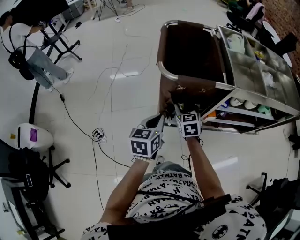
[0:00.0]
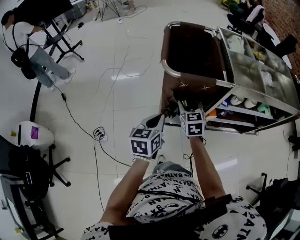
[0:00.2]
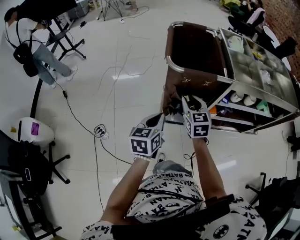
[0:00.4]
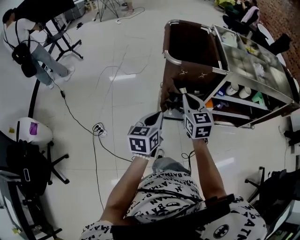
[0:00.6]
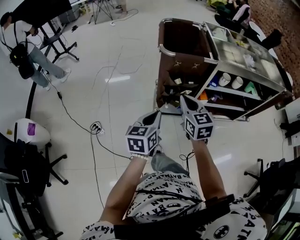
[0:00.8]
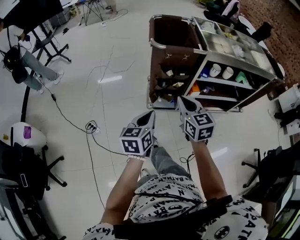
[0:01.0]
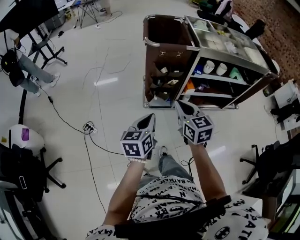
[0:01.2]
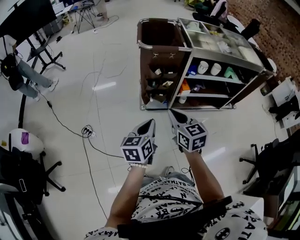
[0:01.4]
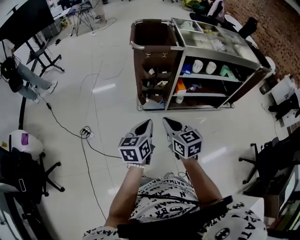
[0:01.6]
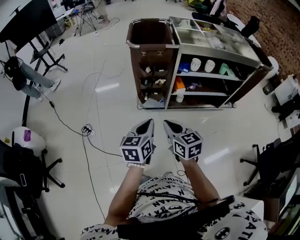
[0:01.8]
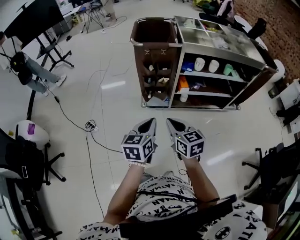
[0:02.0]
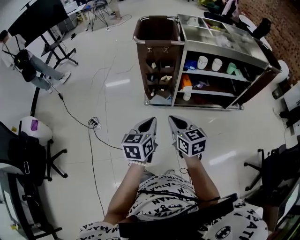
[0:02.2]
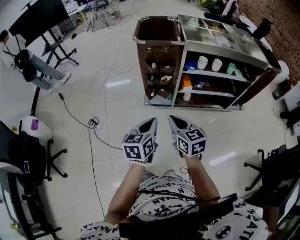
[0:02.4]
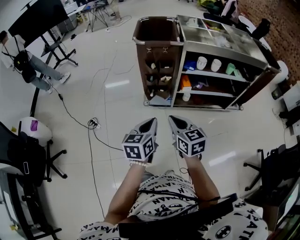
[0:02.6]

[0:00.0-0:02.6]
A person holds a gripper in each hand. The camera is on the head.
0:00.0 to 0:01.2: The left gripper goes some 25 cm backward. Meanwhile the right gripper travels backward and upward by approximately 35 cm, and closes.
0:01.2 to 0:02.6: The left gripper travels to the right and backward by some 15 cm. Meanwhile the right gripper is displaced backward and to the right by approximately 15 cm.

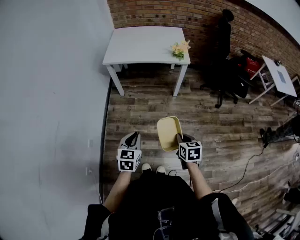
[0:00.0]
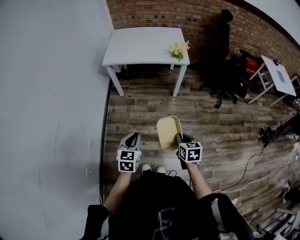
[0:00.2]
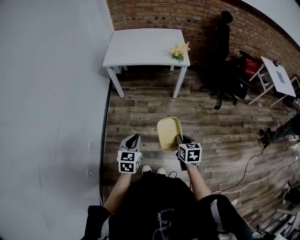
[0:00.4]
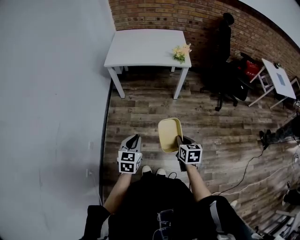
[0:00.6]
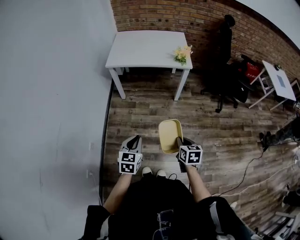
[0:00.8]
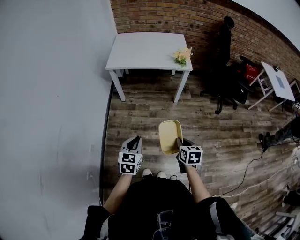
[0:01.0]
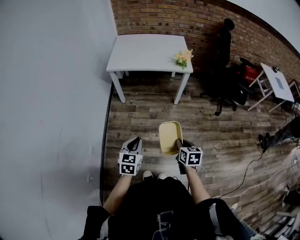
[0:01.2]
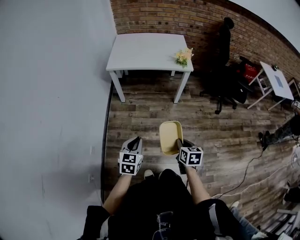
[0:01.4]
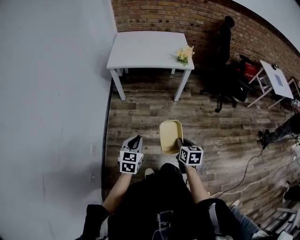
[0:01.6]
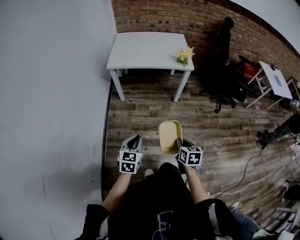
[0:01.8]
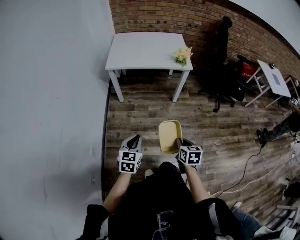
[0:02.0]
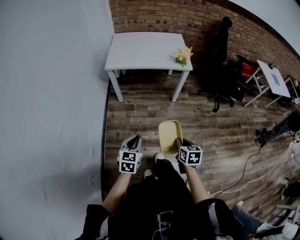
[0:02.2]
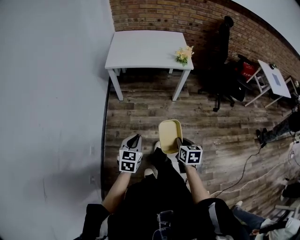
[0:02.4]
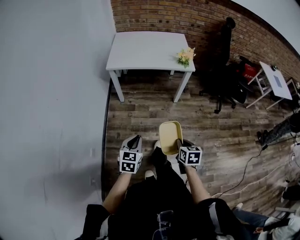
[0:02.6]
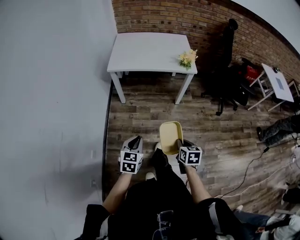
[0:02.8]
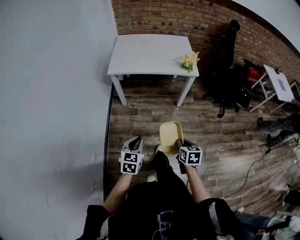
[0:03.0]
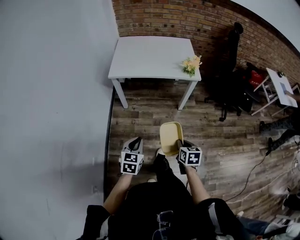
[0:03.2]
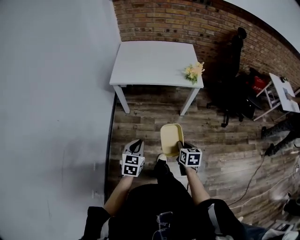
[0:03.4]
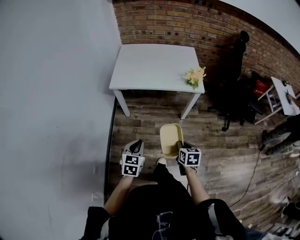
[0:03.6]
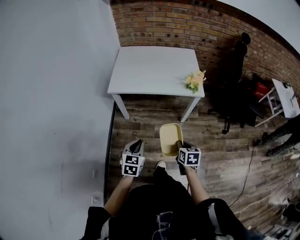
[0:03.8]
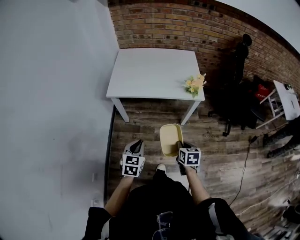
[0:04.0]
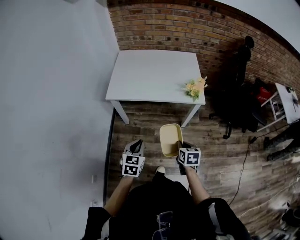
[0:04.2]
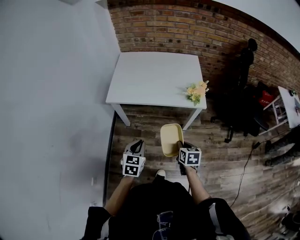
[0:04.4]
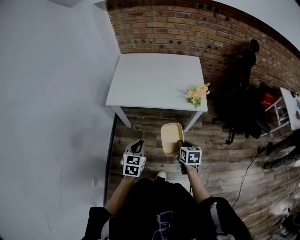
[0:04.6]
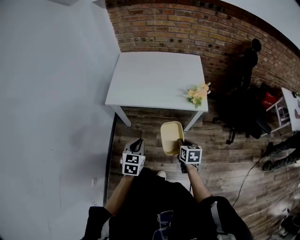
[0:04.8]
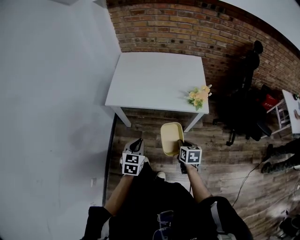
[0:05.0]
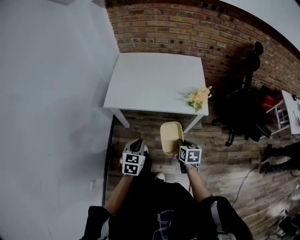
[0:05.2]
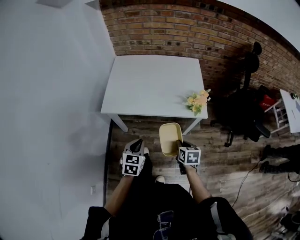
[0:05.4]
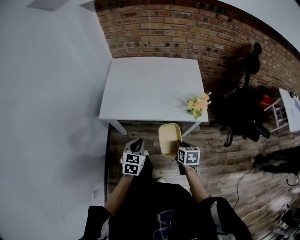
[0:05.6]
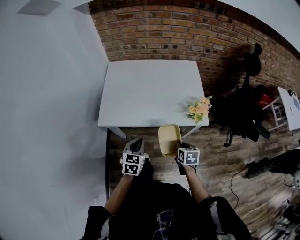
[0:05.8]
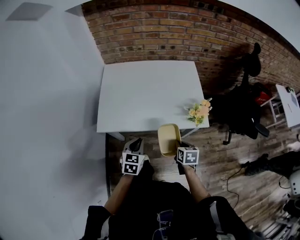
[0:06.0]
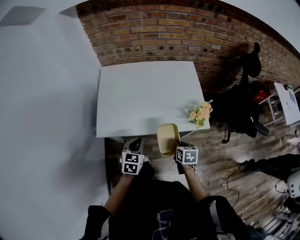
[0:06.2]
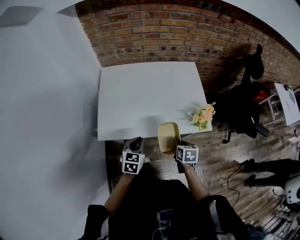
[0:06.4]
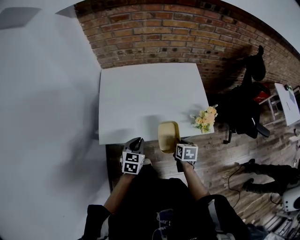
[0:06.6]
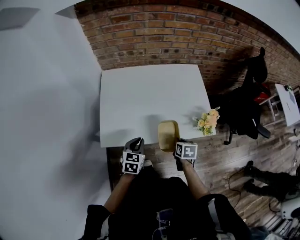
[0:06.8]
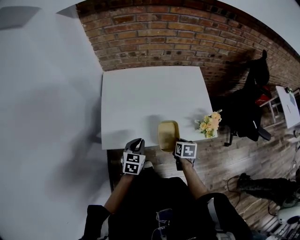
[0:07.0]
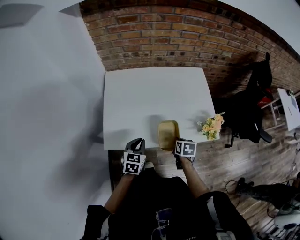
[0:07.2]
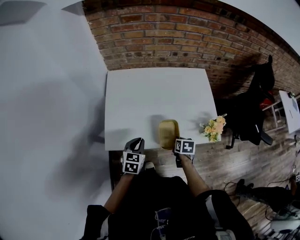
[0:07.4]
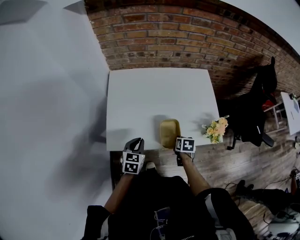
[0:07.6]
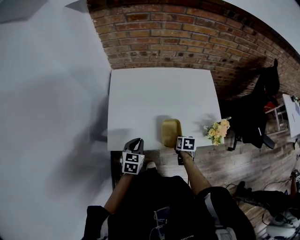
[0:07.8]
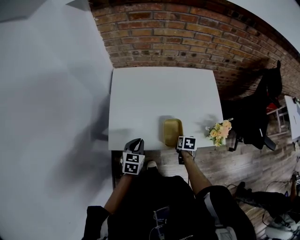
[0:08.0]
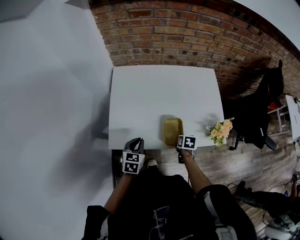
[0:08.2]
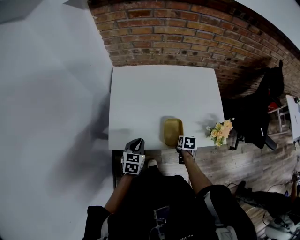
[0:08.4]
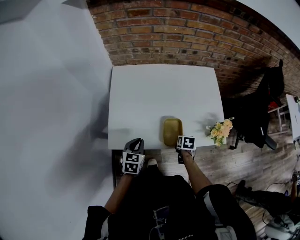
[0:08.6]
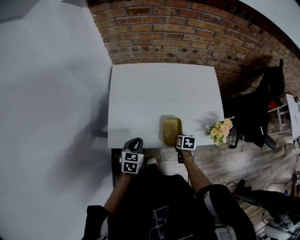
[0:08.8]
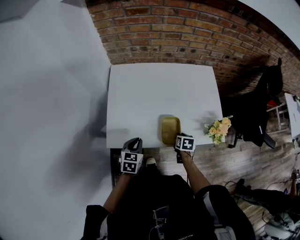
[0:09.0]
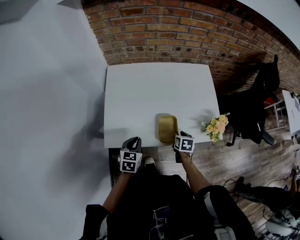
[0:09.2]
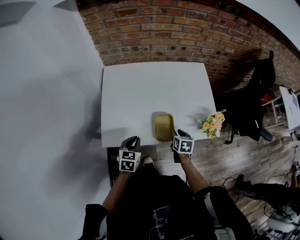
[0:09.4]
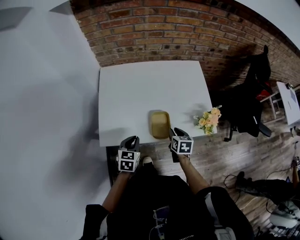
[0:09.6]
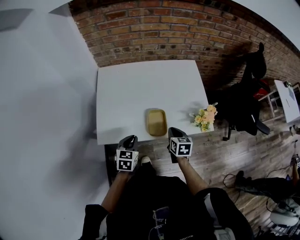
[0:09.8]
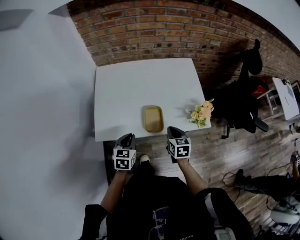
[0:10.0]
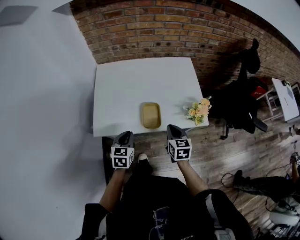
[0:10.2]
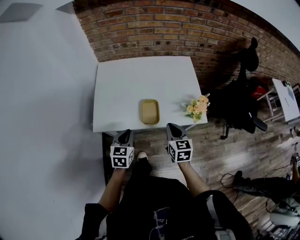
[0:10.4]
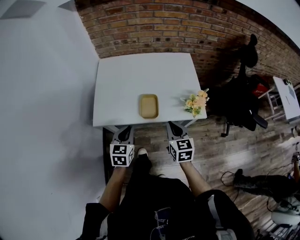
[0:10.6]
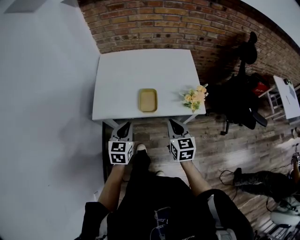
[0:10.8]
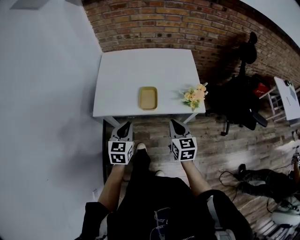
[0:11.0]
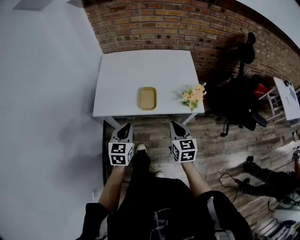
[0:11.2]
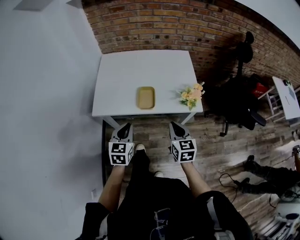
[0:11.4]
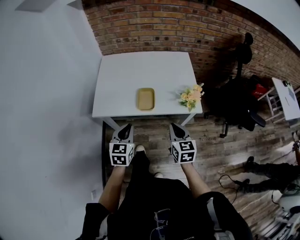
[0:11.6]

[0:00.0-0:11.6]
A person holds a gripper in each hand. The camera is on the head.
0:00.0 to 0:01.4: The grippers stay close to where they were, moving slightly.
0:01.4 to 0:02.8: The left gripper goes some 5 cm forward; the right gripper shifts by approximately 5 cm.
0:02.8 to 0:04.4: Both grippers move forward, roughly 30 cm.
0:04.4 to 0:05.8: The grippers both shift forward by approximately 20 cm.
0:05.8 to 0:07.2: The grippers both shift forward and to the left by about 20 cm.
0:07.2 to 0:08.8: The left gripper changes place by some 5 cm; the right gripper heads downward, covering approximately 5 cm.
0:08.8 to 0:10.2: The right gripper shifts roughly 20 cm upward and backward, tilts its fingers about 30 degrees upward, and opens, then closes once more. Meanwhile the left gripper travels to the right, backward and upward by roughly 10 cm.
0:10.2 to 0:11.6: The left gripper is displaced backward, upward and to the right by some 15 cm, while the right gripper shifts roughly 15 cm backward.

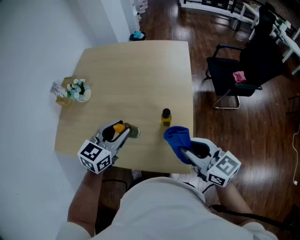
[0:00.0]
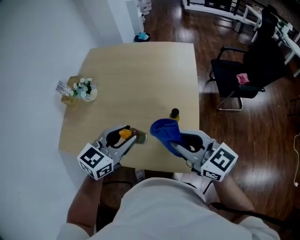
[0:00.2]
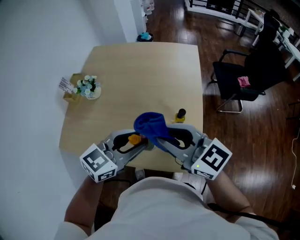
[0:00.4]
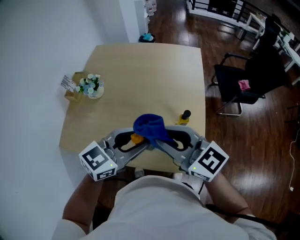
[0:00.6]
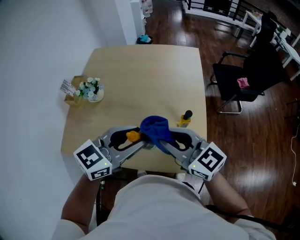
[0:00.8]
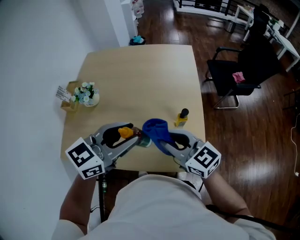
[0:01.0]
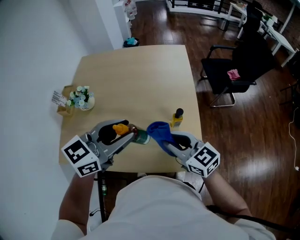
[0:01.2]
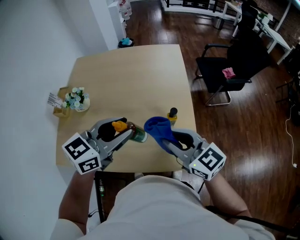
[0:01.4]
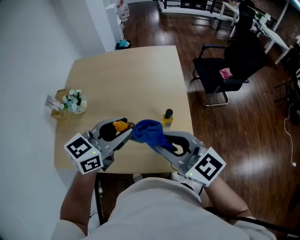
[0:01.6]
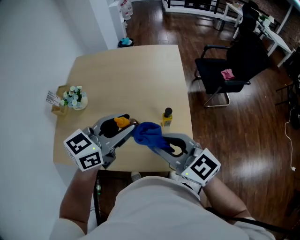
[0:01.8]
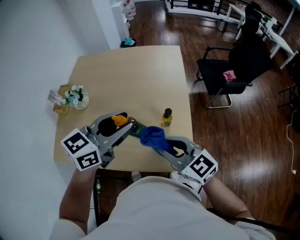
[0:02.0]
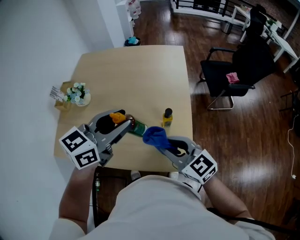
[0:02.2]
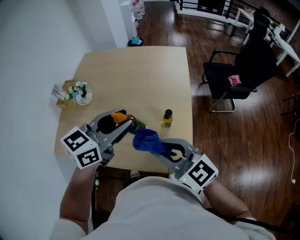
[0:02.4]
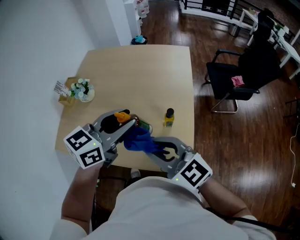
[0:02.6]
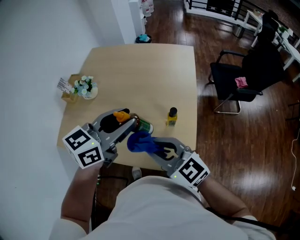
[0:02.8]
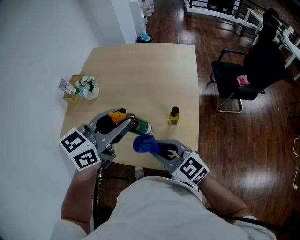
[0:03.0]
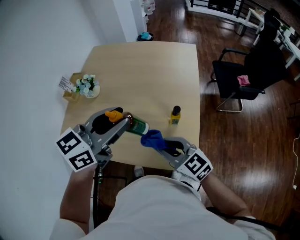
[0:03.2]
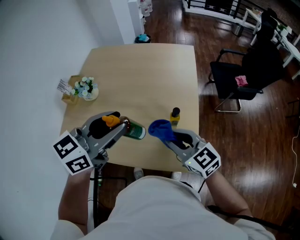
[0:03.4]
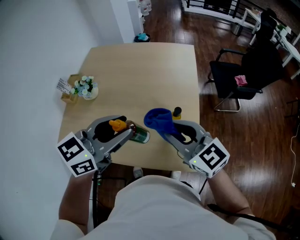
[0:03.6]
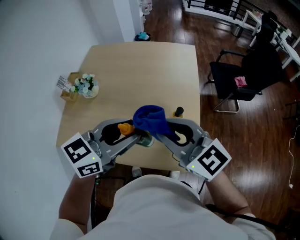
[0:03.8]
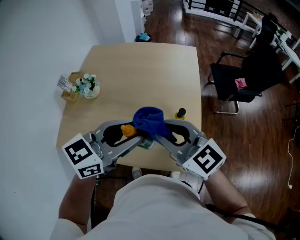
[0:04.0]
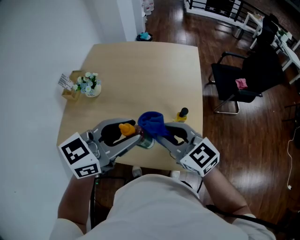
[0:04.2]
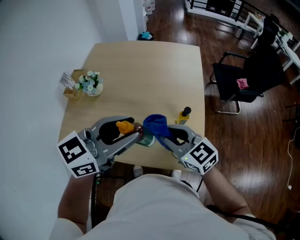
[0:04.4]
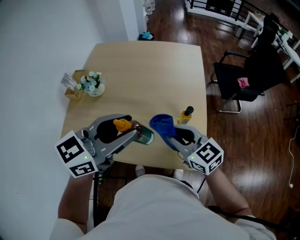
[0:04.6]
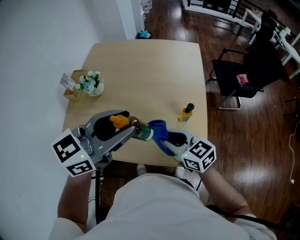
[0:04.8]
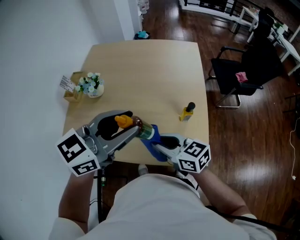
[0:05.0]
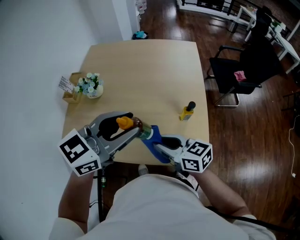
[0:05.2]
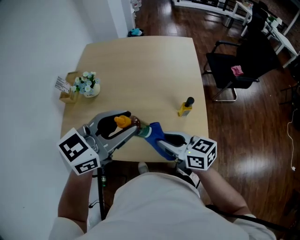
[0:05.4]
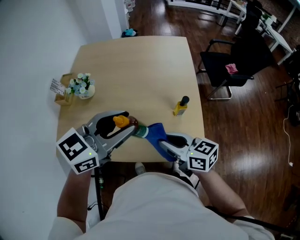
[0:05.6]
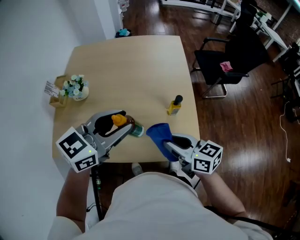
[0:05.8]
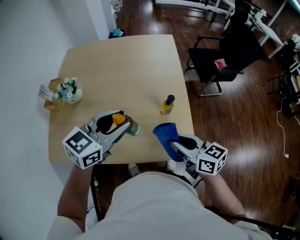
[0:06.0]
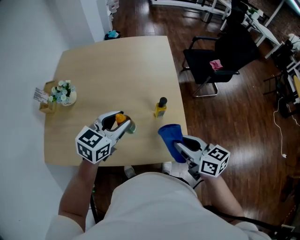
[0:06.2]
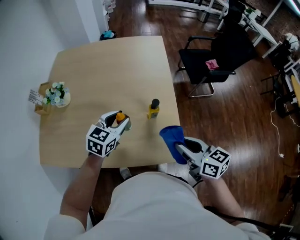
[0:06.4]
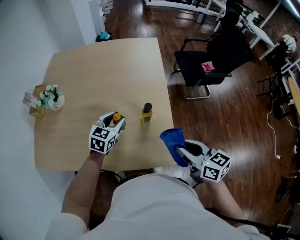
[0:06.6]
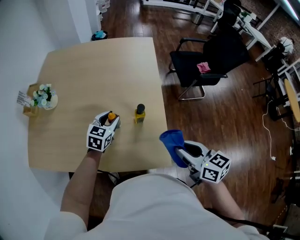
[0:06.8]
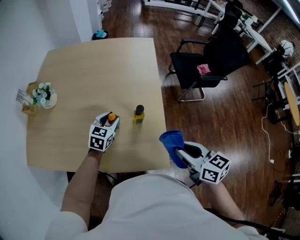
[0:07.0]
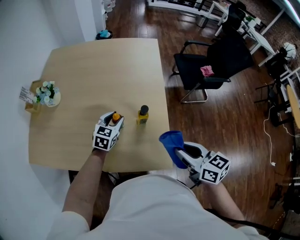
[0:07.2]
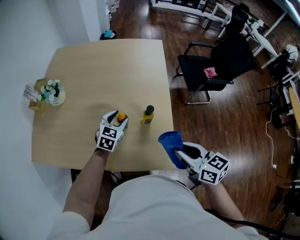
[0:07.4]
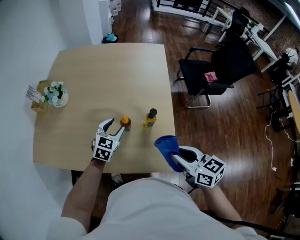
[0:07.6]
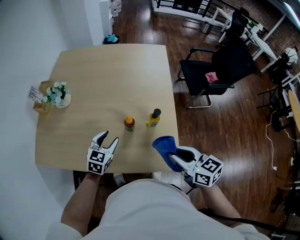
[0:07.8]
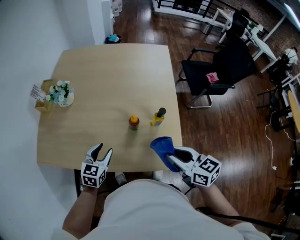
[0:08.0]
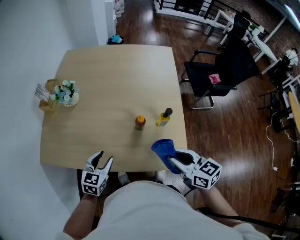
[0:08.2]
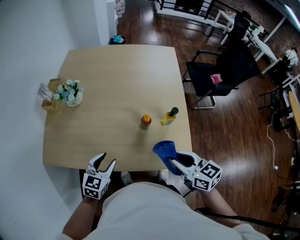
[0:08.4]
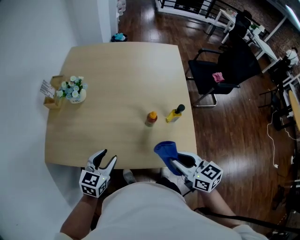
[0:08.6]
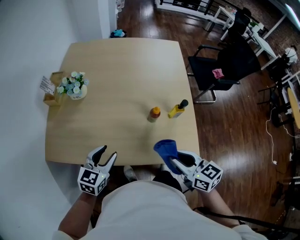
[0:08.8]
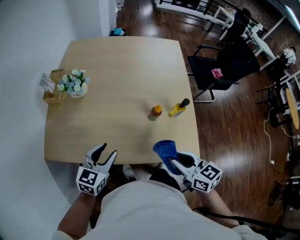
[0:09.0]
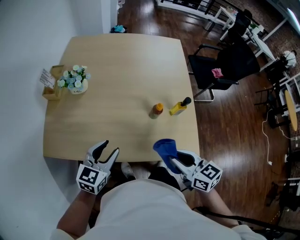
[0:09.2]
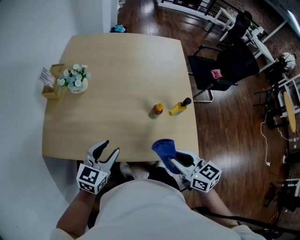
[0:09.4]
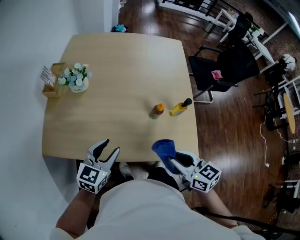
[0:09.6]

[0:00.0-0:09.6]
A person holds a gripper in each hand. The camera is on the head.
0:00.0 to 0:01.6: The right gripper goes roughly 15 cm to the left and upward; the left gripper is displaced upward by approximately 10 cm, and rotates approximately 20 degrees.
0:01.6 to 0:03.2: The right gripper moves up and down over some 10 cm, changing direction 2 times.
0:03.2 to 0:04.8: The grippers both shift to the left by about 5 cm. The right gripper travels upward and back again, approximately 15 cm each way.
0:04.8 to 0:06.4: The left gripper travels downward and forward by roughly 25 cm, and rotates approximately 20 degrees; the right gripper shifts some 20 cm to the right, and rotates some 30 degrees.
0:06.4 to 0:08.0: The right gripper moves to the left, about 5 cm. The left gripper travels to the left, backward and downward by approximately 20 cm.
0:08.0 to 0:09.6: The left gripper moves to the left and upward, some 10 cm. The right gripper moves to the left, about 15 cm.
